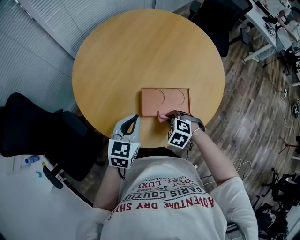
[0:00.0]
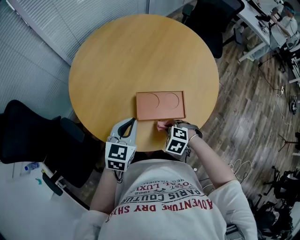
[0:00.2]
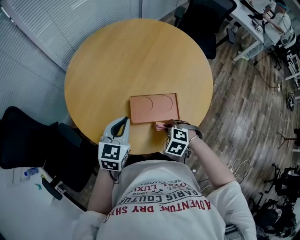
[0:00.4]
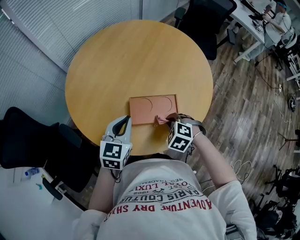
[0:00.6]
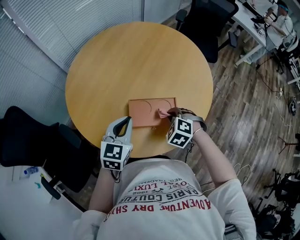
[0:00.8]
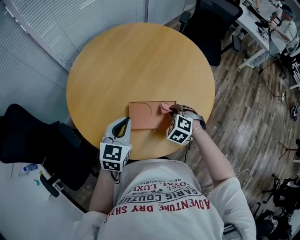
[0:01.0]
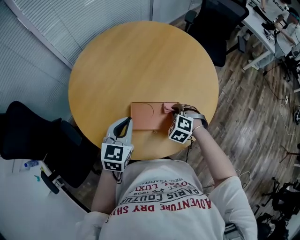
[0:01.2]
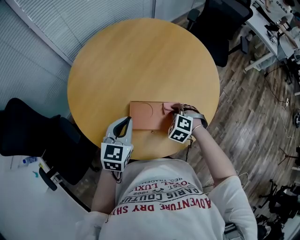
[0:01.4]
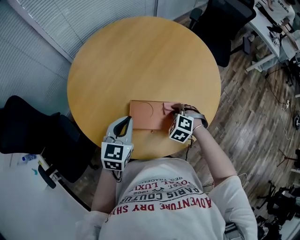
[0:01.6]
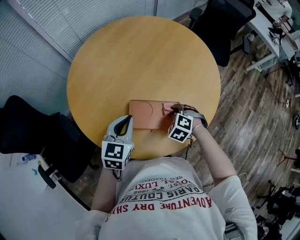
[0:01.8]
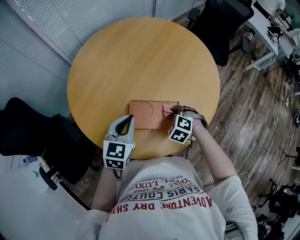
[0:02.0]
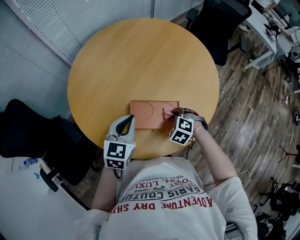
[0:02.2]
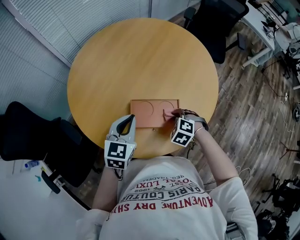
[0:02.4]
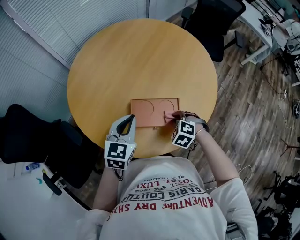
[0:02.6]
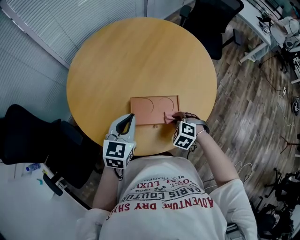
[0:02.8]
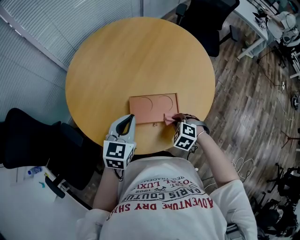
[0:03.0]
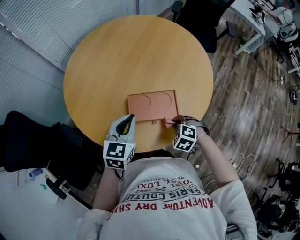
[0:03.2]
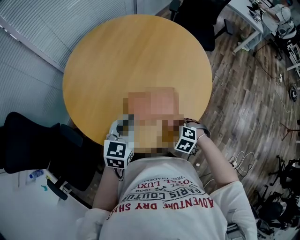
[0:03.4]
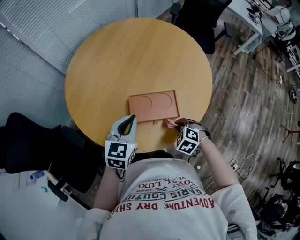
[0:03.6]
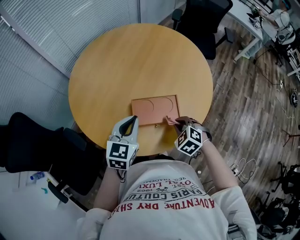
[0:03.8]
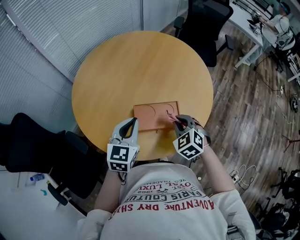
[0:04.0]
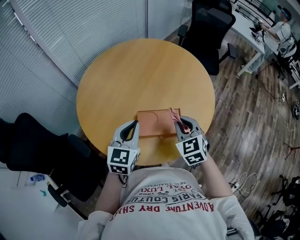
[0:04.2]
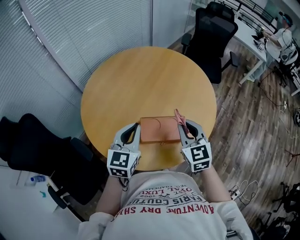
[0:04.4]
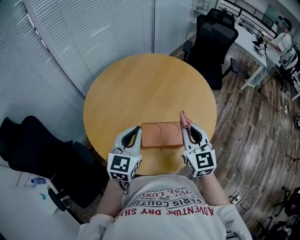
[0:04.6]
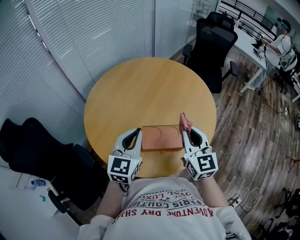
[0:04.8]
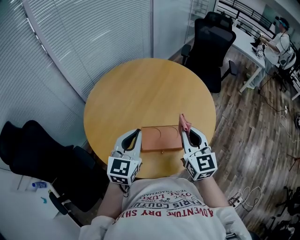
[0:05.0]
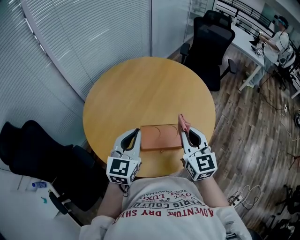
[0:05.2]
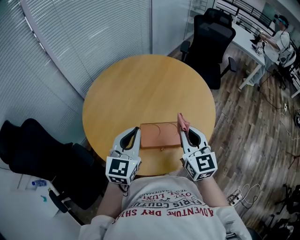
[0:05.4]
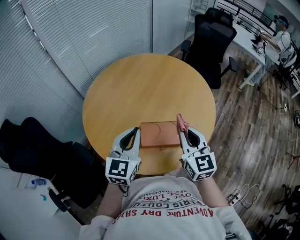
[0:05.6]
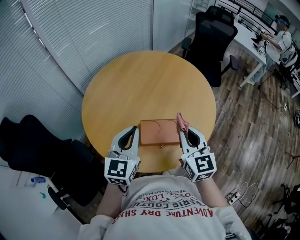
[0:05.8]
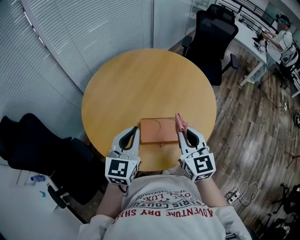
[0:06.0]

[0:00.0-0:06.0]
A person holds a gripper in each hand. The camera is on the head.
0:00.0 to 0:01.6: The left gripper ends up roughly 5 cm from where it was; the right gripper is displaced forward and to the right by approximately 15 cm.
0:01.6 to 0:03.0: The right gripper heads backward, covering some 10 cm.
0:03.0 to 0:04.4: The left gripper goes approximately 10 cm upward. Meanwhile the right gripper moves upward, roughly 25 cm, and tilts its fingers approximately 50 degrees upward.
0:04.4 to 0:06.0: The grippers move only a little.

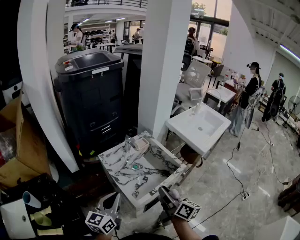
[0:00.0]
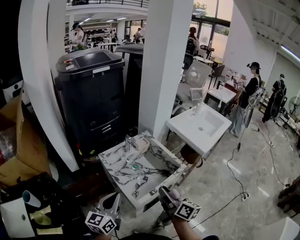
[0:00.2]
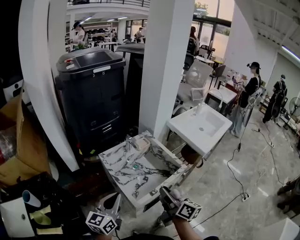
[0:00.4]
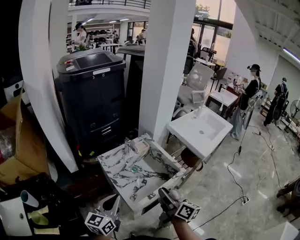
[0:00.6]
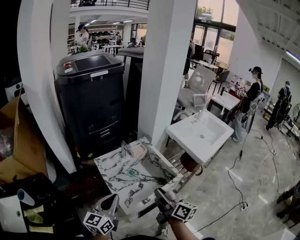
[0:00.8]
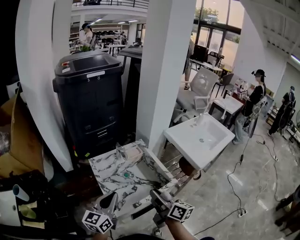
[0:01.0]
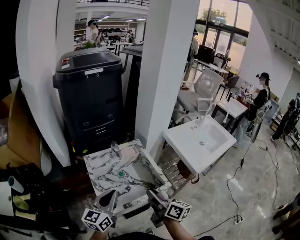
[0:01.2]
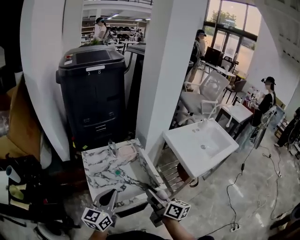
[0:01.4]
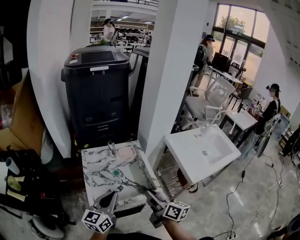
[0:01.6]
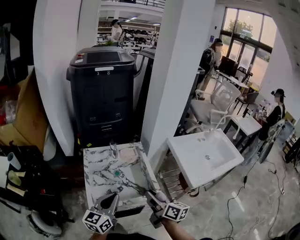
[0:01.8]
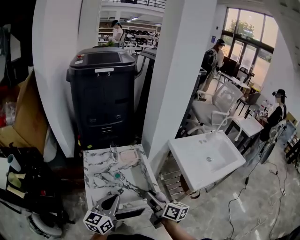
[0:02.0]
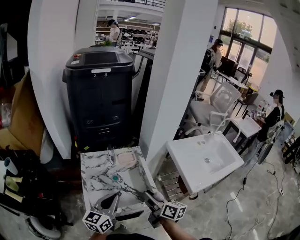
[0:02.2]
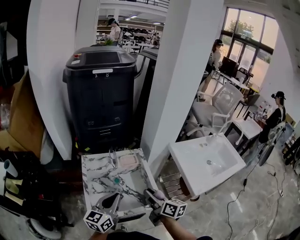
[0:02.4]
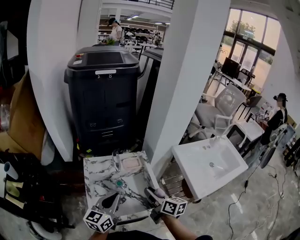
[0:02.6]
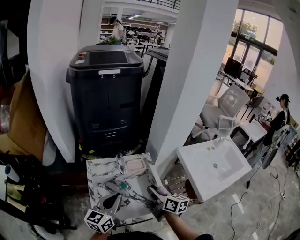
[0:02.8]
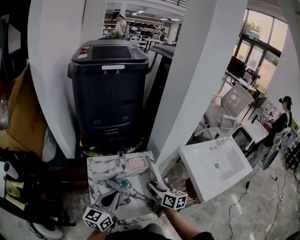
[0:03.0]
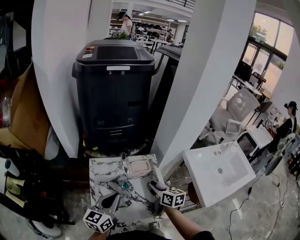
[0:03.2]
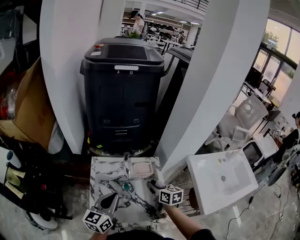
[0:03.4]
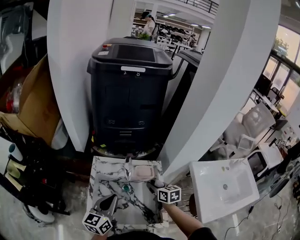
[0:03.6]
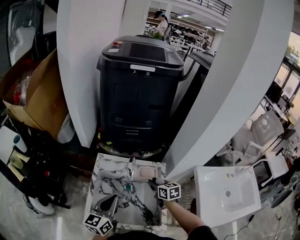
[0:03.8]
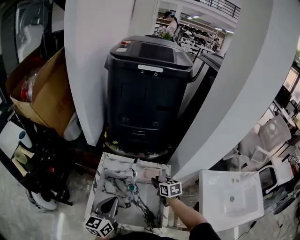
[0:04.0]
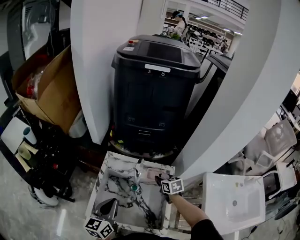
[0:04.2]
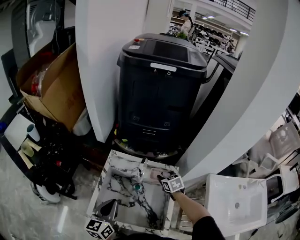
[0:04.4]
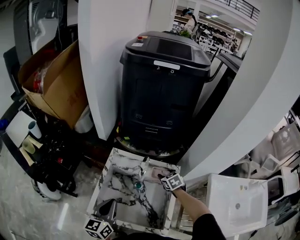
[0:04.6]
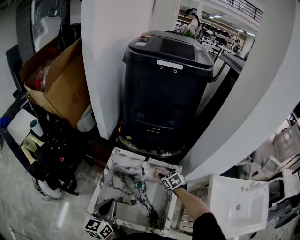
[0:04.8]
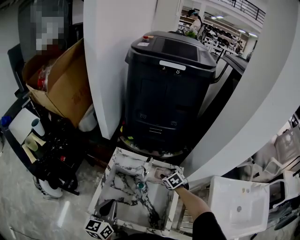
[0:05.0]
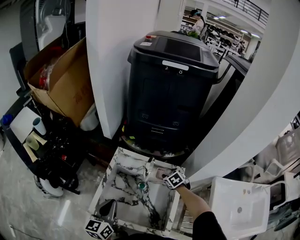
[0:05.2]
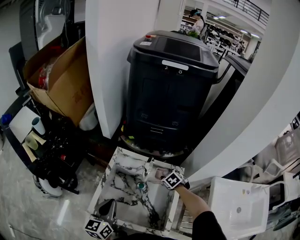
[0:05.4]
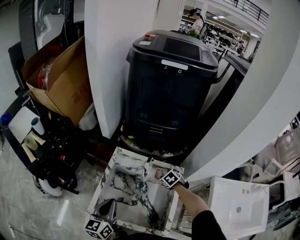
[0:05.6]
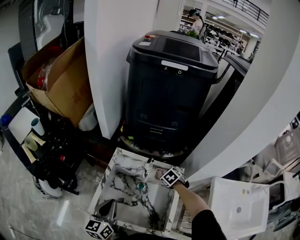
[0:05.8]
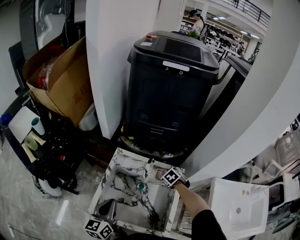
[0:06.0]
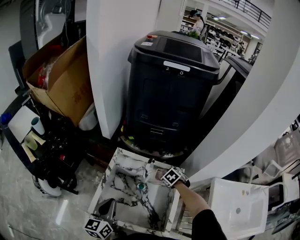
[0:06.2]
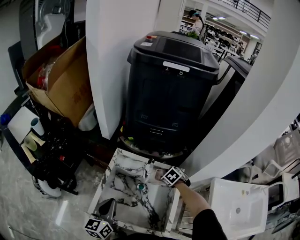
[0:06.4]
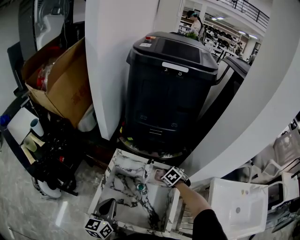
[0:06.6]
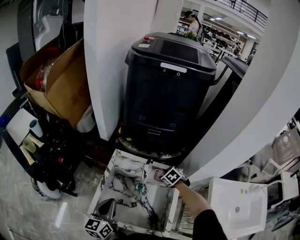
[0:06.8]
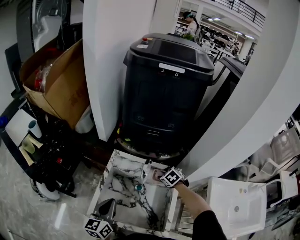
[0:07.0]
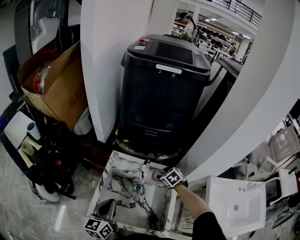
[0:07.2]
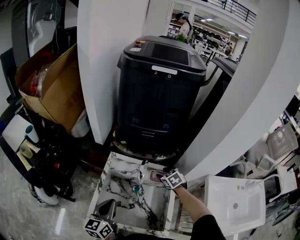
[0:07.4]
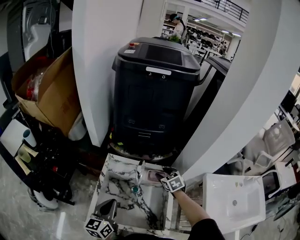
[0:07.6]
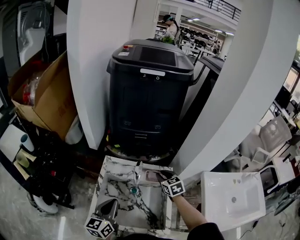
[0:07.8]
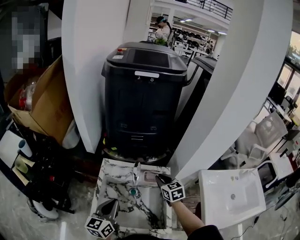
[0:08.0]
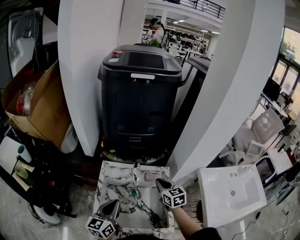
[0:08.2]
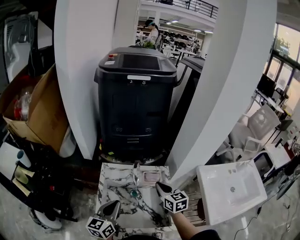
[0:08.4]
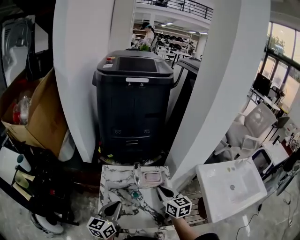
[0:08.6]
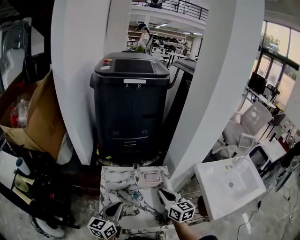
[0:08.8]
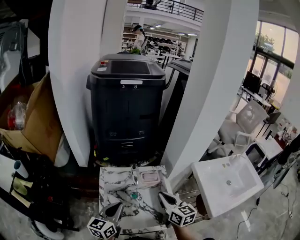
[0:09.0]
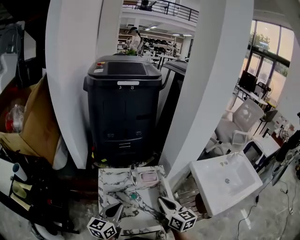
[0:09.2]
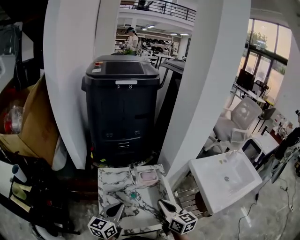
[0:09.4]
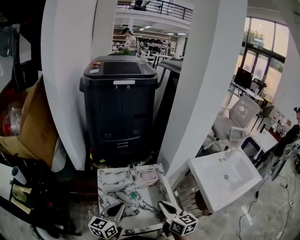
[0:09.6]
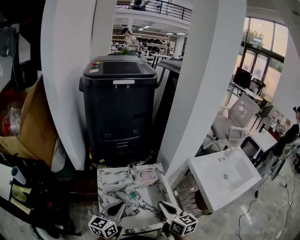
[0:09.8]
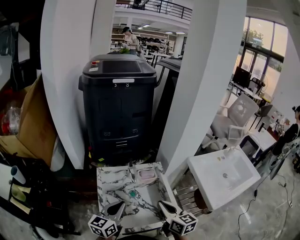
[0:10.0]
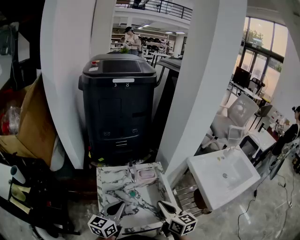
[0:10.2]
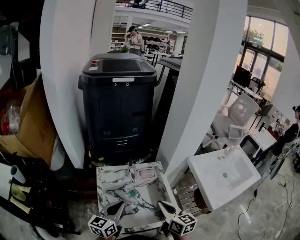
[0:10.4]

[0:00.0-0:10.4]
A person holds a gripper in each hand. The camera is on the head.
0:00.0 to 0:01.4: The grippers both shift to the right and forward by about 15 cm. The right gripper turns by roughly 20 degrees.
0:01.4 to 0:03.0: The left gripper shifts some 10 cm forward. Meanwhile the right gripper shifts approximately 20 cm forward, and turns by some 20 degrees.
0:03.0 to 0:04.4: The right gripper shifts by roughly 20 cm, and angles its fingers downward, by approximately 30 degrees; the left gripper swivels approximately 40 degrees.
0:04.4 to 0:06.0: The right gripper moves downward, about 5 cm, and turns by roughly 30 degrees.
0:06.0 to 0:07.4: The right gripper moves upward, some 5 cm, swivels approximately 20 degrees, and opens.
0:07.4 to 0:09.0: The left gripper changes its angle by about 30 degrees. Meanwhile the right gripper goes about 25 cm backward and upward, tilts its fingers some 40 degrees upward, and closes.
0:09.0 to 0:10.4: The right gripper heads backward, covering some 5 cm.

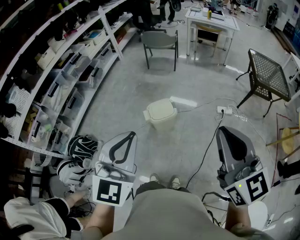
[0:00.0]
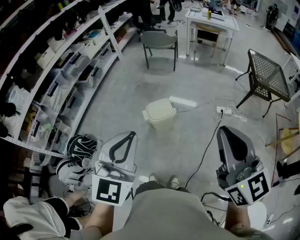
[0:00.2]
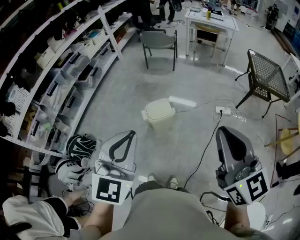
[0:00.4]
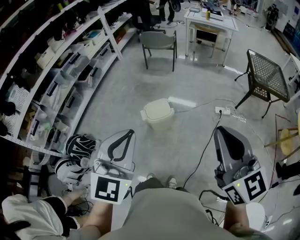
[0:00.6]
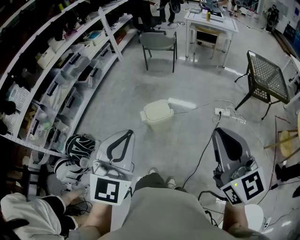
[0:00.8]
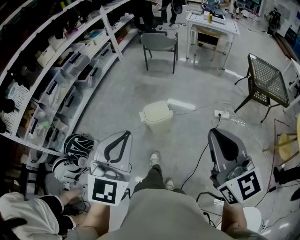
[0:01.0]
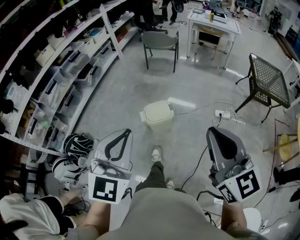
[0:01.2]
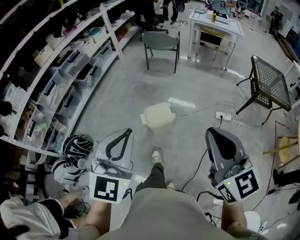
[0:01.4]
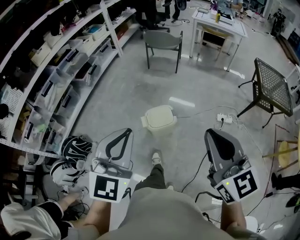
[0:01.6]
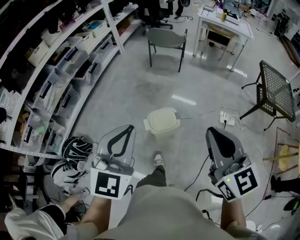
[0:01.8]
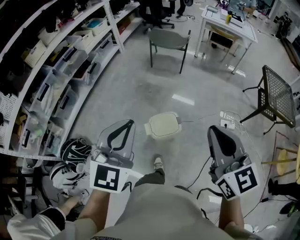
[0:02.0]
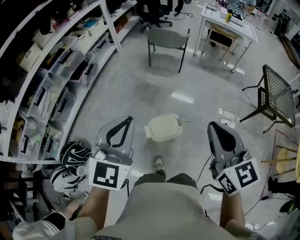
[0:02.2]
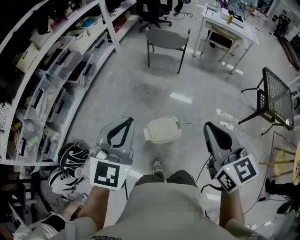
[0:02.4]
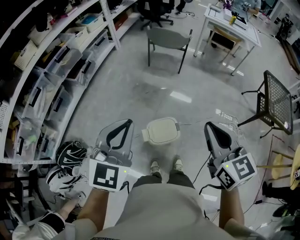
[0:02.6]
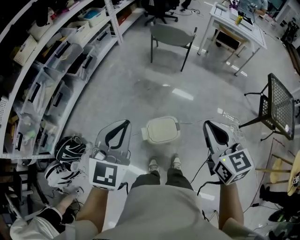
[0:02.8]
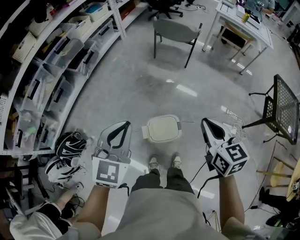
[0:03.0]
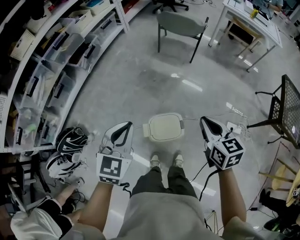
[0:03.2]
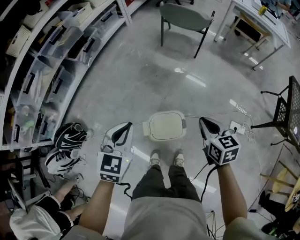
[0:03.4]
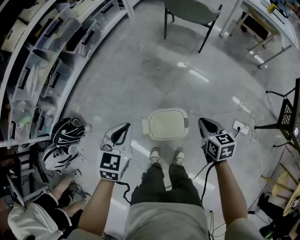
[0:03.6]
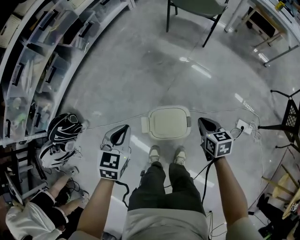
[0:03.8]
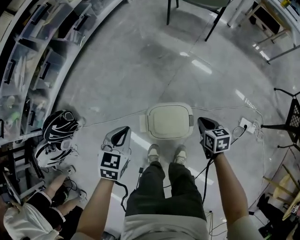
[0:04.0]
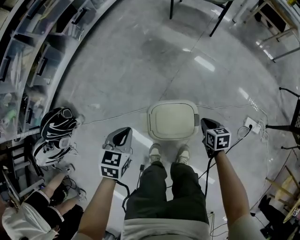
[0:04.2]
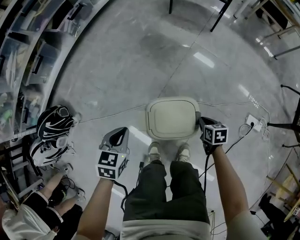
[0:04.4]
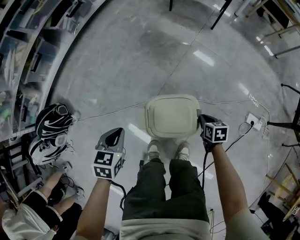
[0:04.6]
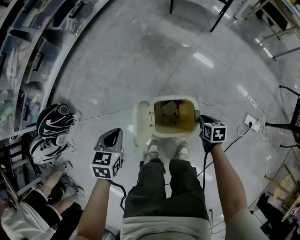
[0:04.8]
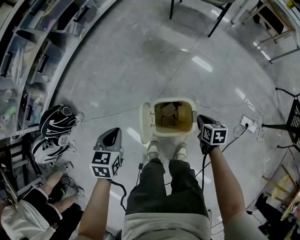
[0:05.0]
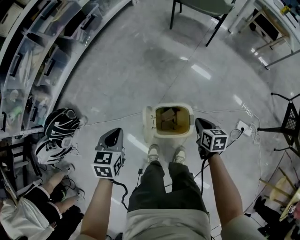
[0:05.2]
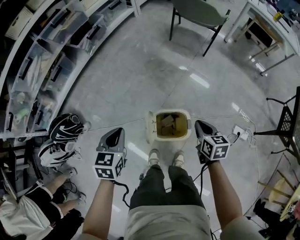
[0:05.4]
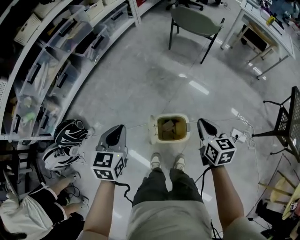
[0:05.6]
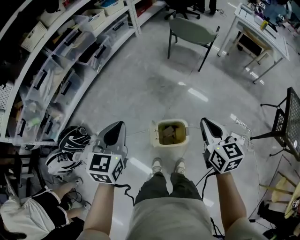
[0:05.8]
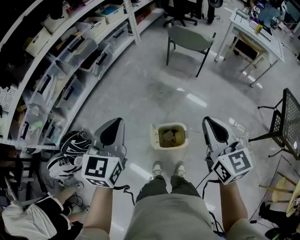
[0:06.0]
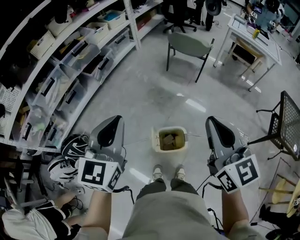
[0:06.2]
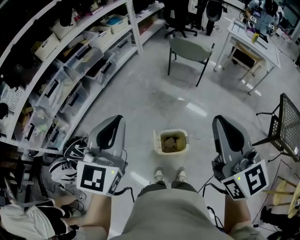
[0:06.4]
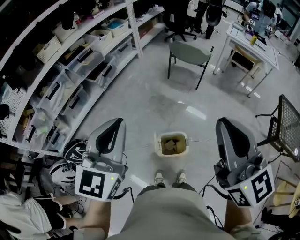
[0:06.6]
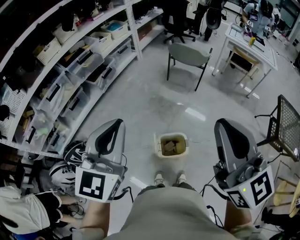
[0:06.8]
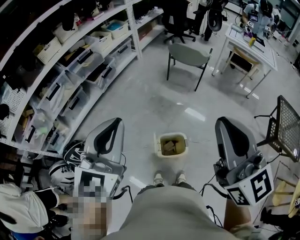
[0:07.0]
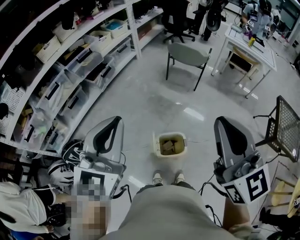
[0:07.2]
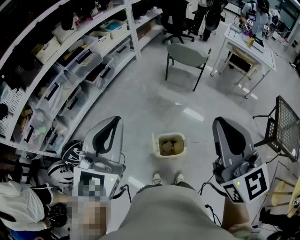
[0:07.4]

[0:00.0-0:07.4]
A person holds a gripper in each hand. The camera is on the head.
0:00.0 to 0:01.4: Both grippers travel together forward, some 5 cm.
0:01.4 to 0:03.0: The right gripper travels forward and downward by some 40 cm, and swivels approximately 30 degrees. Meanwhile the left gripper heads forward, covering approximately 35 cm.
0:03.0 to 0:04.4: The two grippers go approximately 50 cm downward. The left gripper rotates about 40 degrees; the right gripper tilts its fingers roughly 30 degrees downward.
0:04.4 to 0:06.0: Both grippers move upward, some 60 cm. The left gripper tips its fingers upward by about 30 degrees. The right gripper tilts its fingers roughly 50 degrees upward.
0:06.0 to 0:07.4: Both grippers move upward, about 15 cm.
